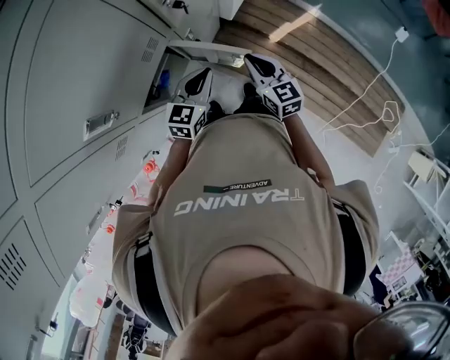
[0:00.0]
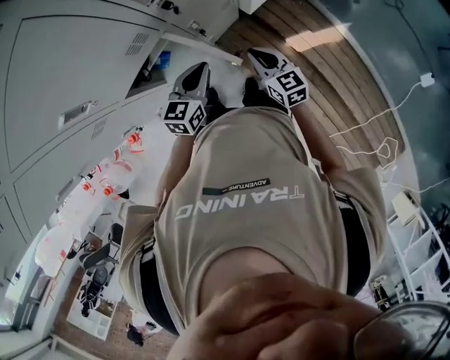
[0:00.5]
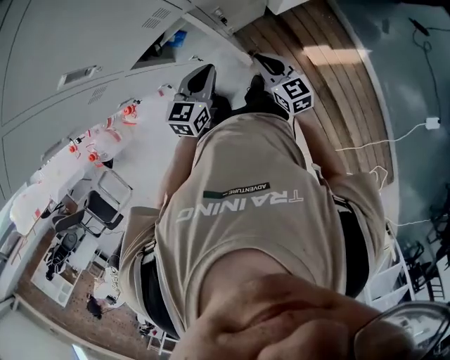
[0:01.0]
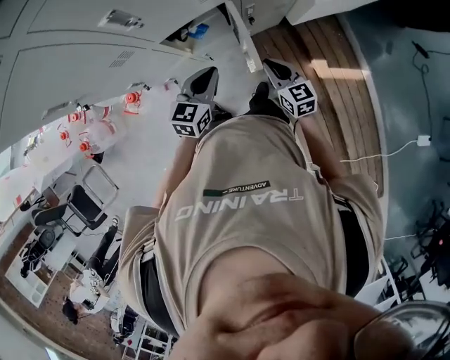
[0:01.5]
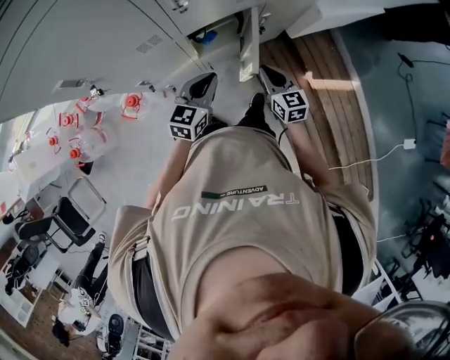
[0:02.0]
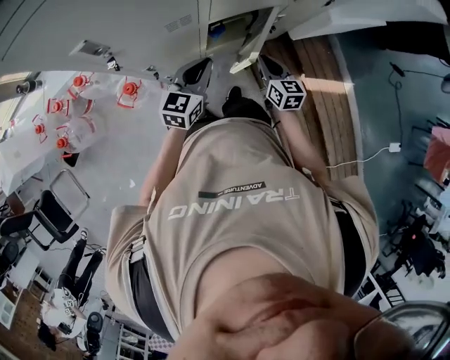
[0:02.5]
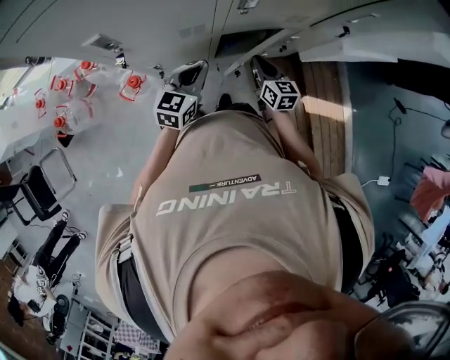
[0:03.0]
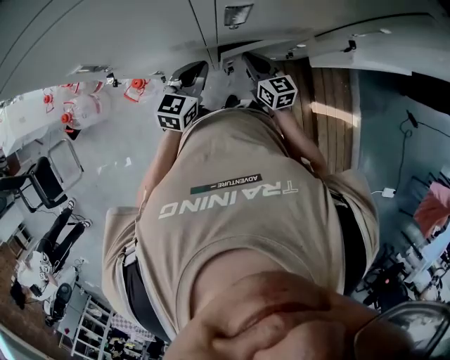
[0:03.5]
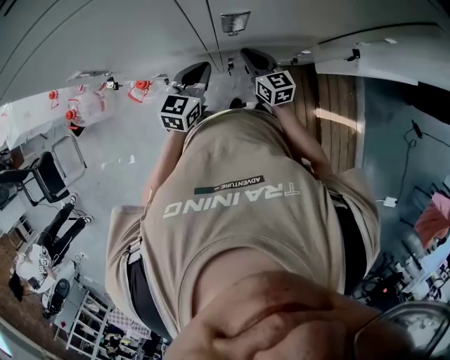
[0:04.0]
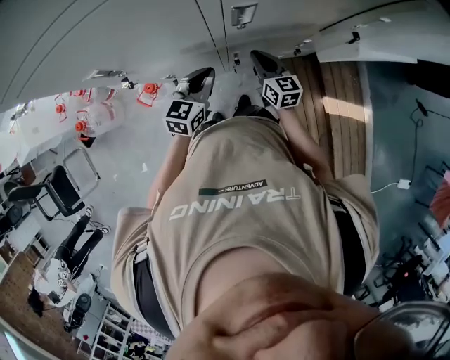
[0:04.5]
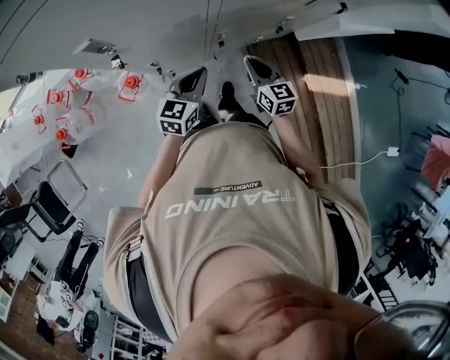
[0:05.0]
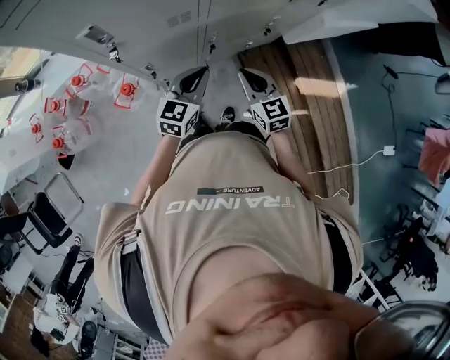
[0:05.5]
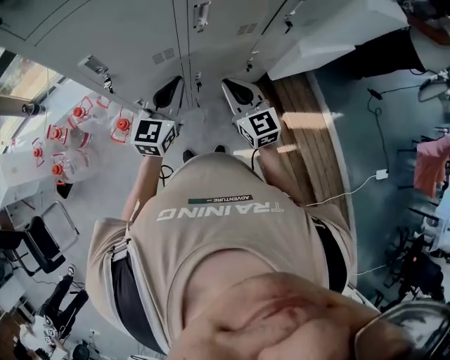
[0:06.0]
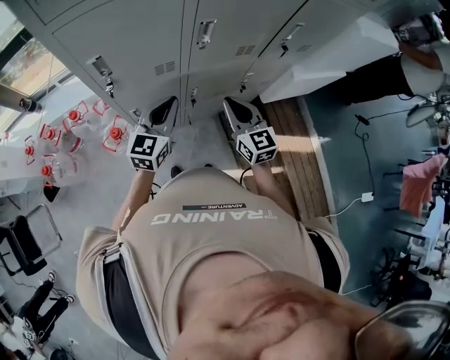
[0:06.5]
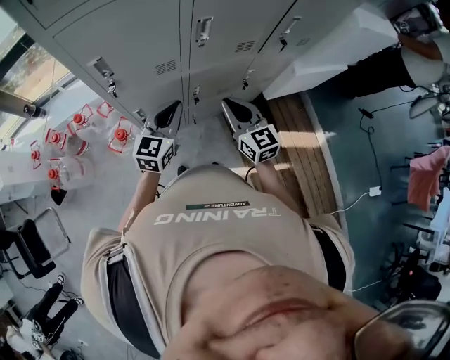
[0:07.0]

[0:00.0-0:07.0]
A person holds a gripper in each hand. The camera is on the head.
0:00.0 to 0:02.0: The left gripper changes place by approximately 20 cm, and swivels about 30 degrees. The right gripper moves roughly 15 cm, and changes its angle by roughly 30 degrees.
0:02.0 to 0:03.5: The left gripper goes roughly 10 cm forward and to the left. Meanwhile the right gripper goes about 20 cm to the left and forward, and turns by roughly 20 degrees.
0:03.5 to 0:05.0: The two grippers go roughly 10 cm backward.
0:05.0 to 0:07.0: The right gripper goes about 20 cm upward and backward, and swivels some 20 degrees, while the left gripper goes approximately 15 cm upward.

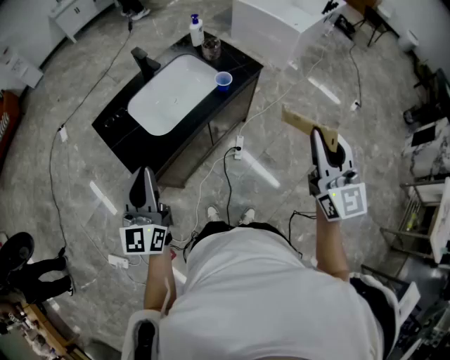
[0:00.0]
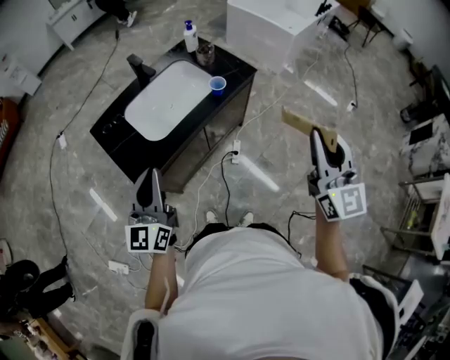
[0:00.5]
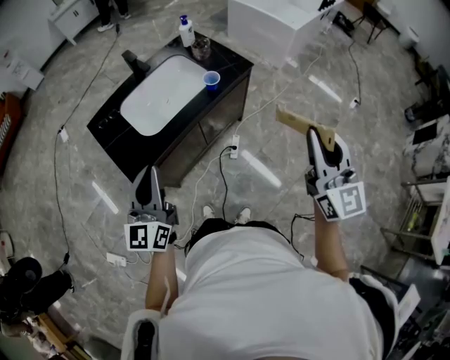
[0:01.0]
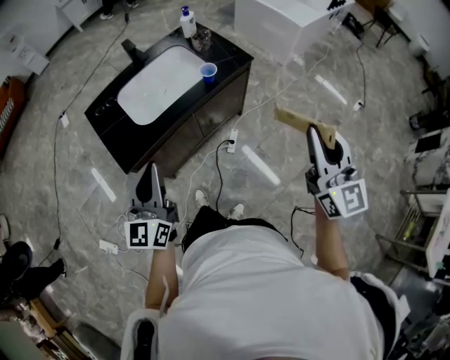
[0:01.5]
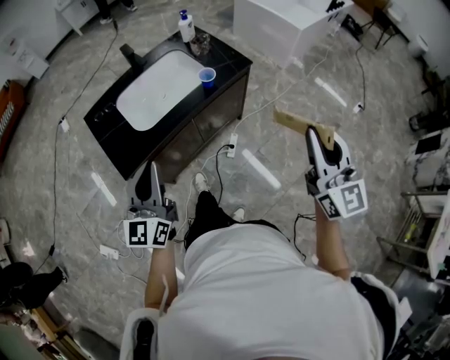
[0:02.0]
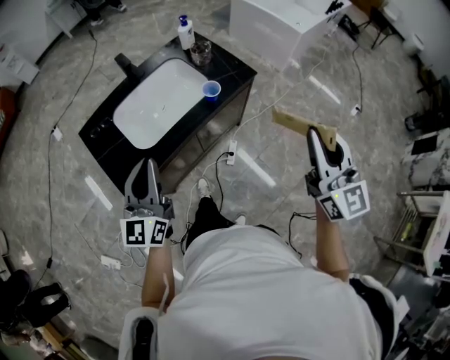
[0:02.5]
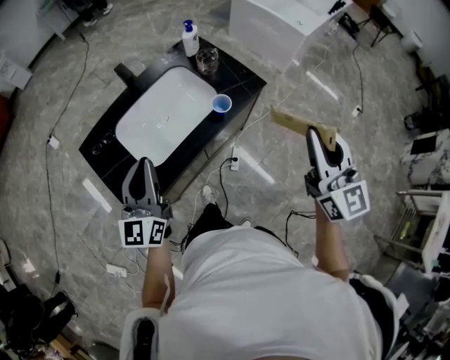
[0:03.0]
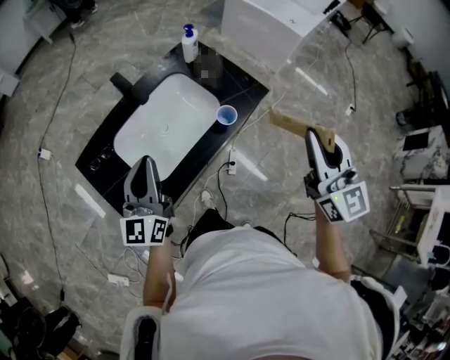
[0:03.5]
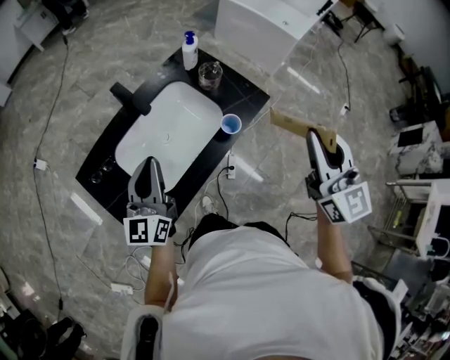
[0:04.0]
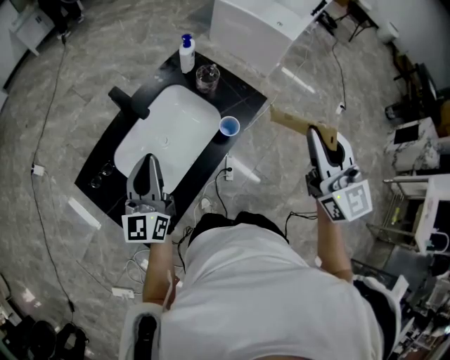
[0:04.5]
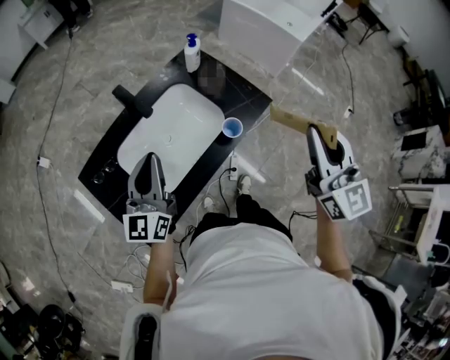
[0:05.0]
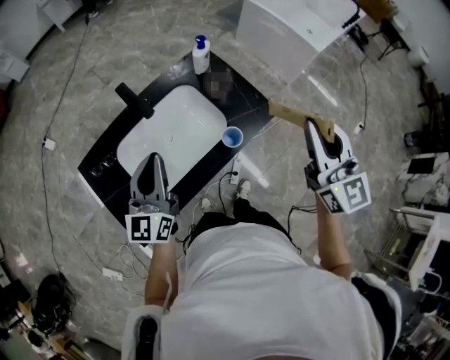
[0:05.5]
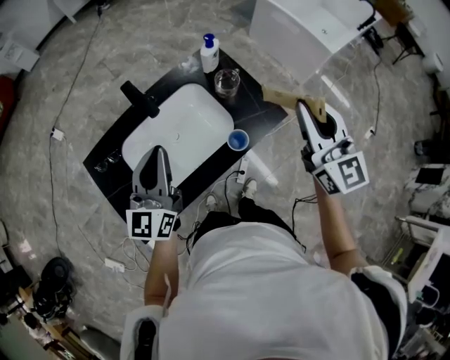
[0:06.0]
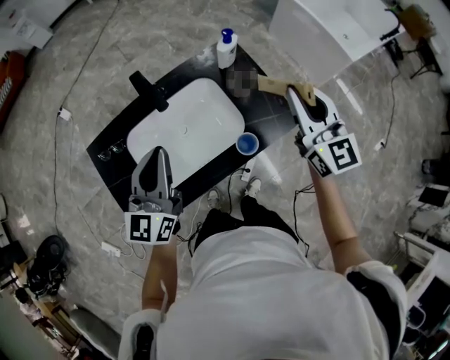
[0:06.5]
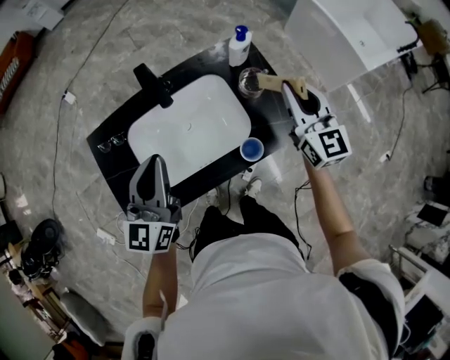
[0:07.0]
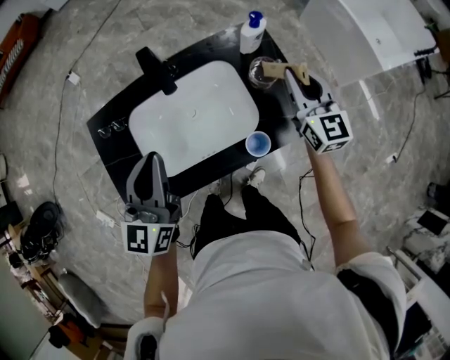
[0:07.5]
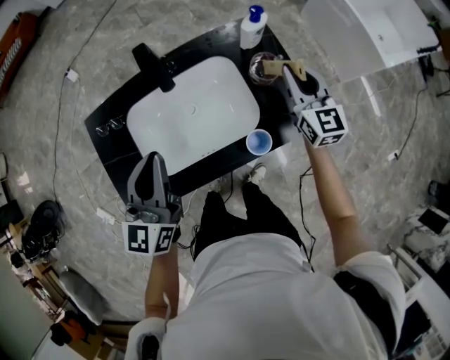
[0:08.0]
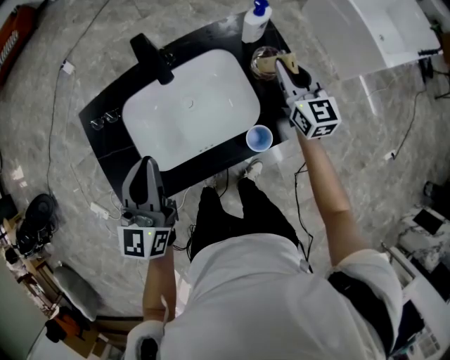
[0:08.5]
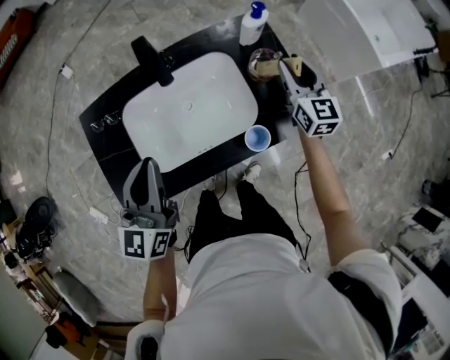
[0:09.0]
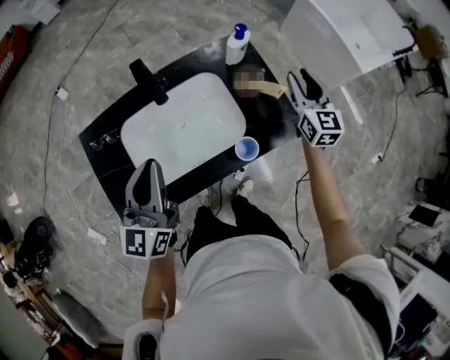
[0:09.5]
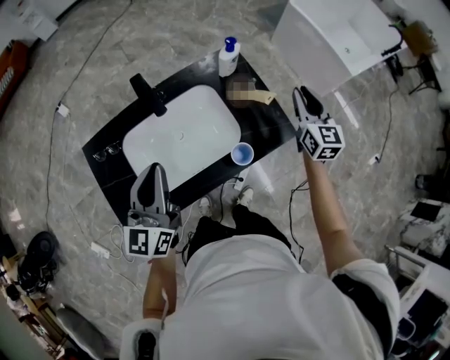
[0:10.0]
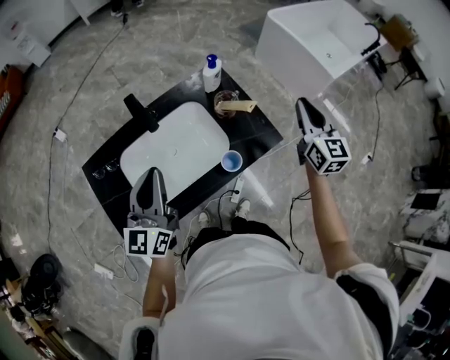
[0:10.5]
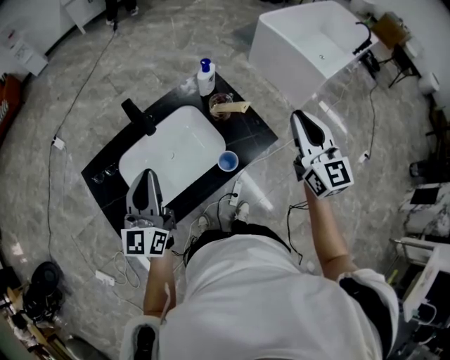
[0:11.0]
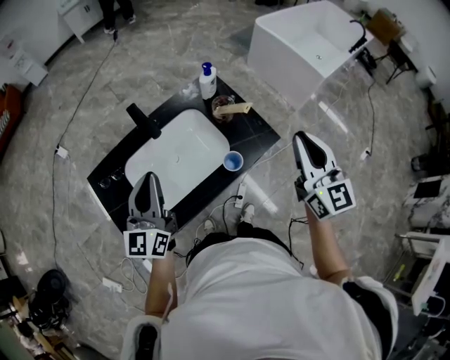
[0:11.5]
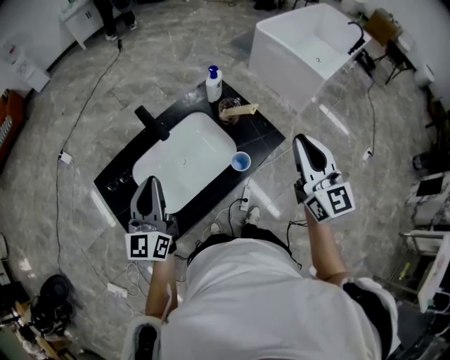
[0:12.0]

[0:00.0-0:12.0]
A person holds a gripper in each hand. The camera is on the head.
0:00.0 to 0:02.0: Both grippers move to the right, some 10 cm.
0:02.0 to 0:04.0: The right gripper travels forward and to the left by some 25 cm, while the left gripper is displaced forward by approximately 30 cm.
0:04.0 to 0:06.0: The right gripper travels forward by approximately 15 cm. Meanwhile the left gripper shifts some 5 cm to the right.
0:06.0 to 0:08.0: The right gripper heads downward and forward, covering about 25 cm.
0:08.0 to 0:10.0: The right gripper goes some 10 cm to the right.
0:10.0 to 0:12.0: The left gripper ends up some 5 cm from where it was. The right gripper goes roughly 25 cm backward and upward.

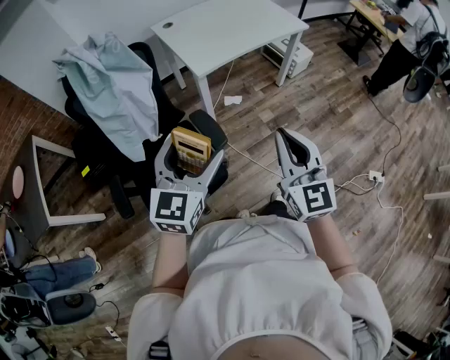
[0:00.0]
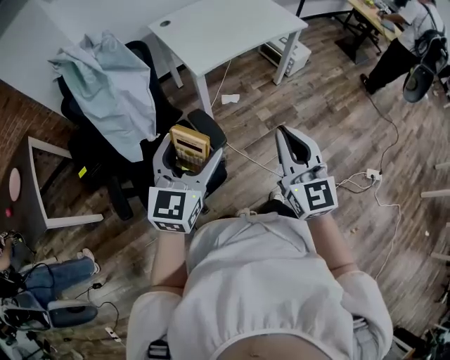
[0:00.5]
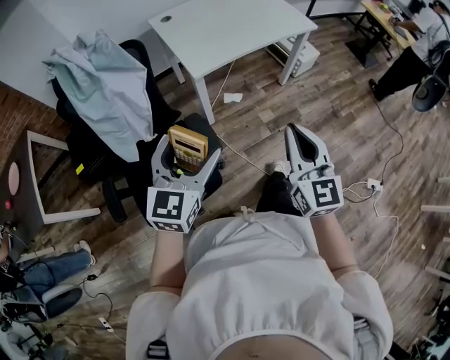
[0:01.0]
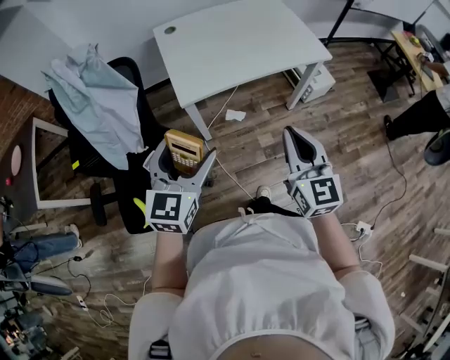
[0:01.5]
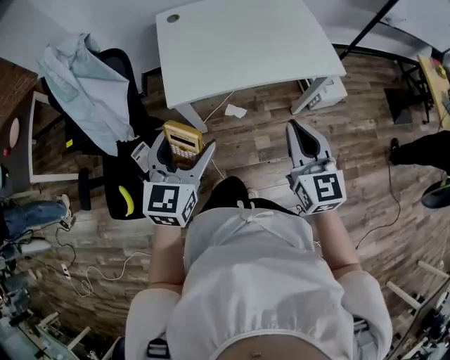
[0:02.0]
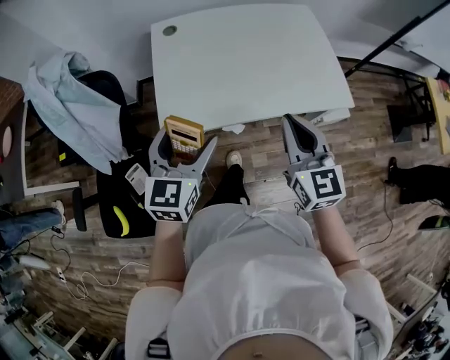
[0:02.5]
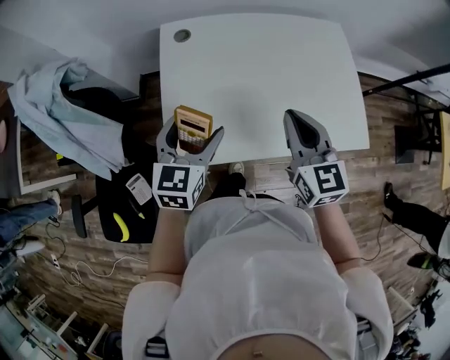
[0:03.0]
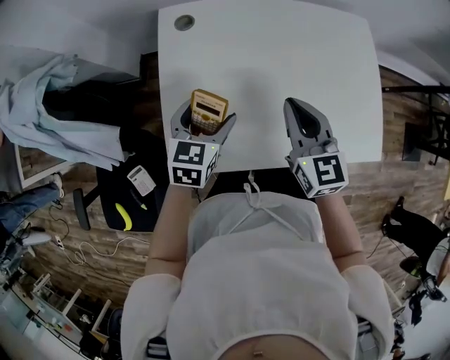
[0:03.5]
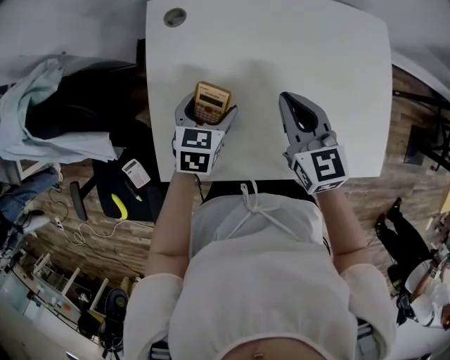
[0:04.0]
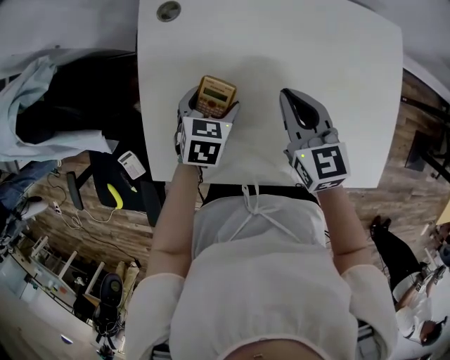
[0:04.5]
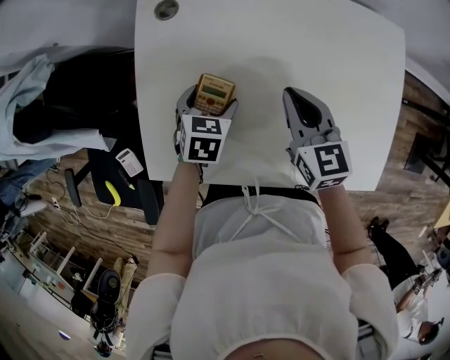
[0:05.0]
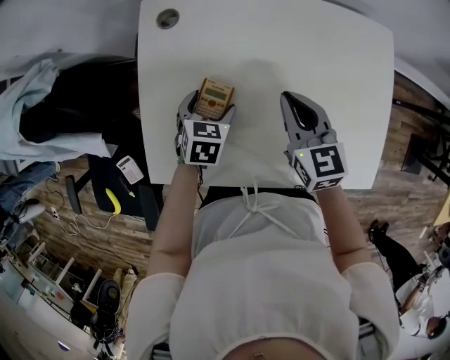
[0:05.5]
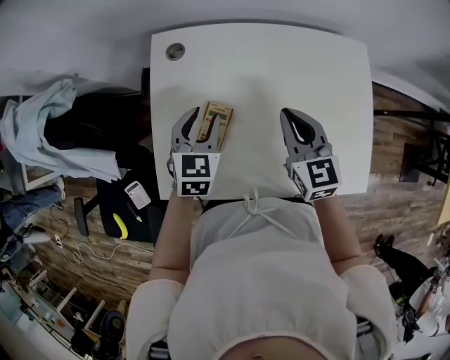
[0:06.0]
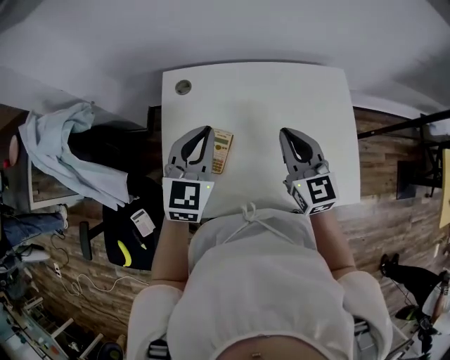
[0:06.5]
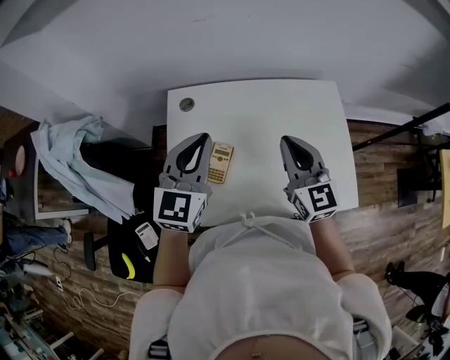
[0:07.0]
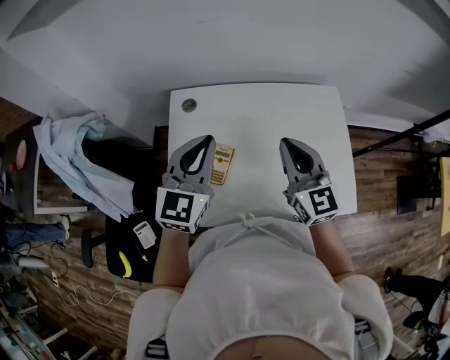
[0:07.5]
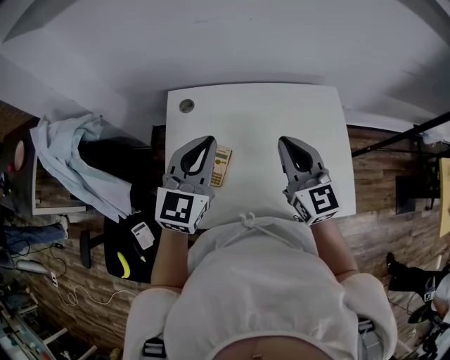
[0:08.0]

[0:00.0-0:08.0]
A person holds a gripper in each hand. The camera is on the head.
0:00.0 to 0:02.0: The two grippers go some 40 cm forward and to the right. The left gripper turns by some 30 degrees, while the right gripper swivels some 20 degrees.
0:02.0 to 0:04.0: Both grippers are carried forward, about 50 cm. The right gripper turns by roughly 30 degrees; the left gripper shifts some 25 cm downward, and points its fingers about 30 degrees further downward.
0:04.0 to 0:06.0: The left gripper travels upward by roughly 10 cm, and closes its fingers. The right gripper changes place by approximately 5 cm.
0:06.0 to 0:08.0: The left gripper travels upward by roughly 20 cm, swivels some 30 degrees, and closes up; the right gripper travels upward by roughly 15 cm.
